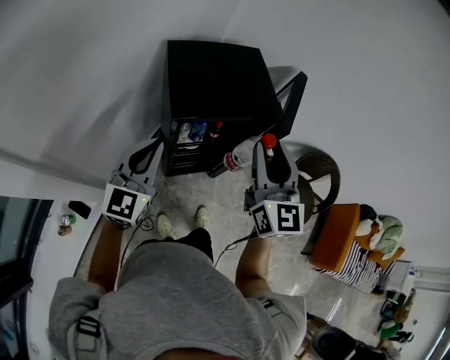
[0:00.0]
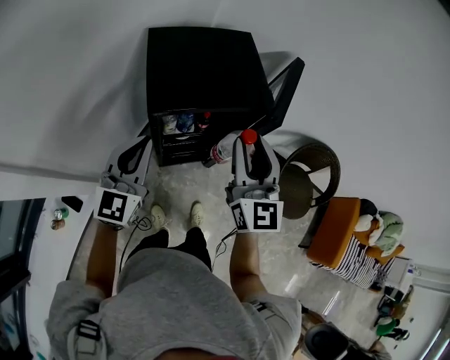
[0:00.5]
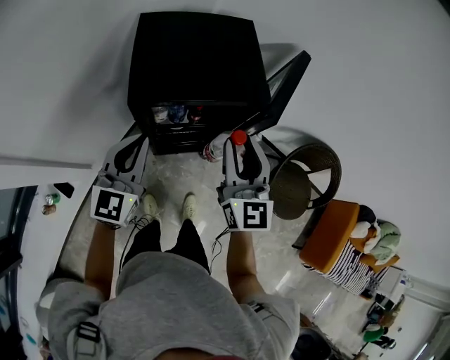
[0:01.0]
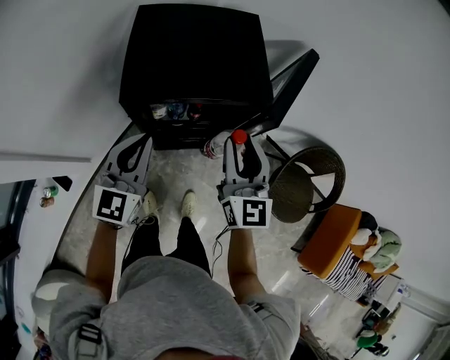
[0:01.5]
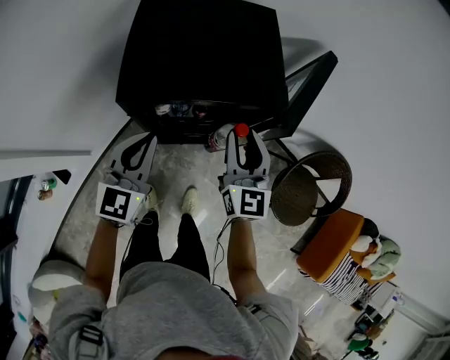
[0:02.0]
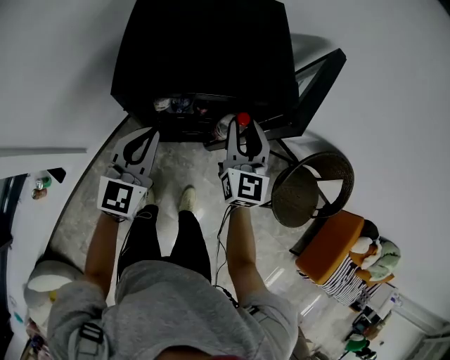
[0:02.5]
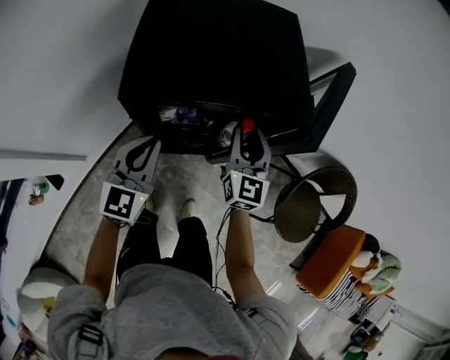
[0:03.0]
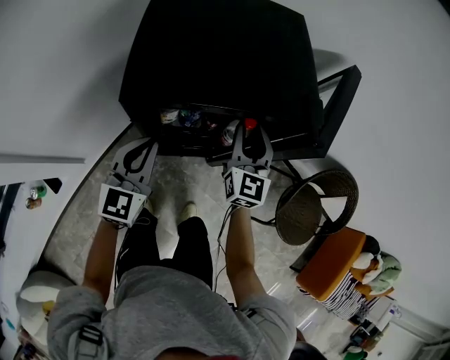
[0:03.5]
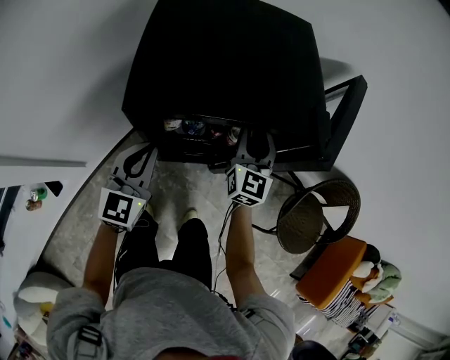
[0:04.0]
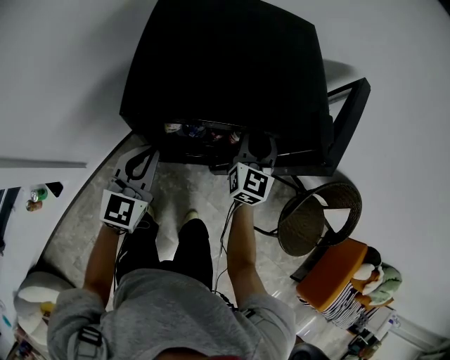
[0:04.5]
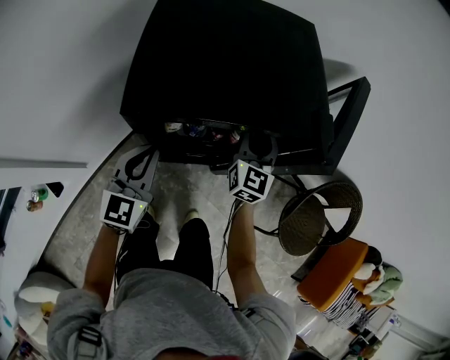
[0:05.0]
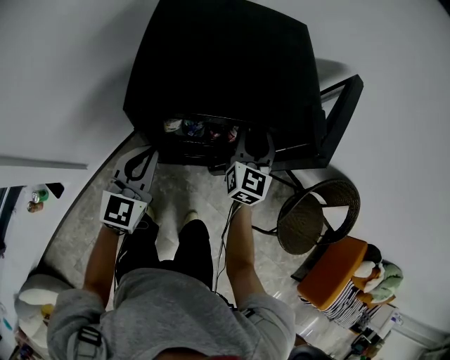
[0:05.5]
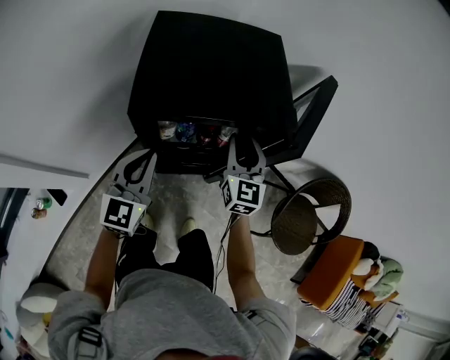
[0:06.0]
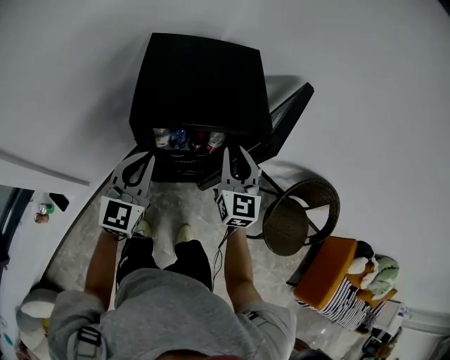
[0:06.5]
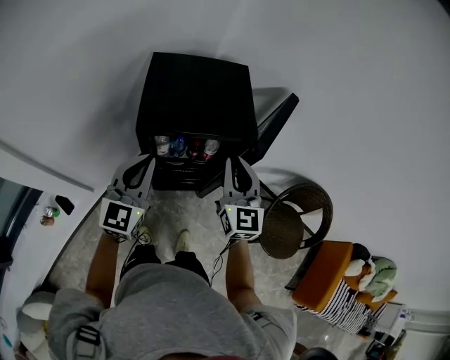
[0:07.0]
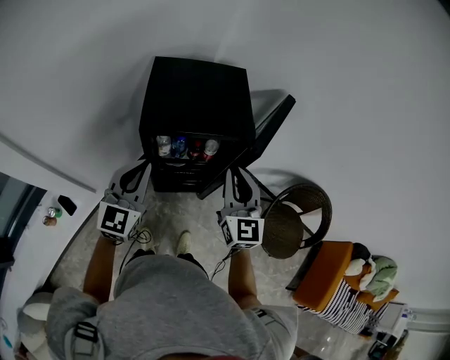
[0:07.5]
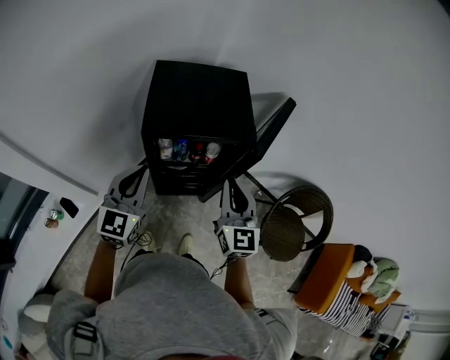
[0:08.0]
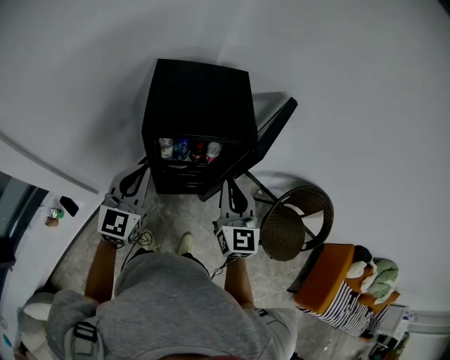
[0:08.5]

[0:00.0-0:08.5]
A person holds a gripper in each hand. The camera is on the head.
0:00.0 to 0:02.0: The right gripper shifts roughly 25 cm downward and forward. The left gripper travels downward, to the right and forward by approximately 15 cm.
0:02.0 to 0:04.0: The left gripper moves downward, roughly 10 cm; the right gripper shifts some 15 cm downward and forward.
0:04.0 to 0:06.5: The right gripper heads upward and backward, covering roughly 15 cm, while the left gripper moves upward, about 15 cm.
0:06.5 to 0:08.5: The right gripper is displaced backward and upward by approximately 15 cm; the left gripper shifts about 10 cm upward and backward.

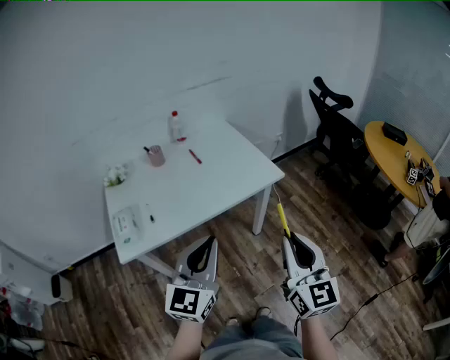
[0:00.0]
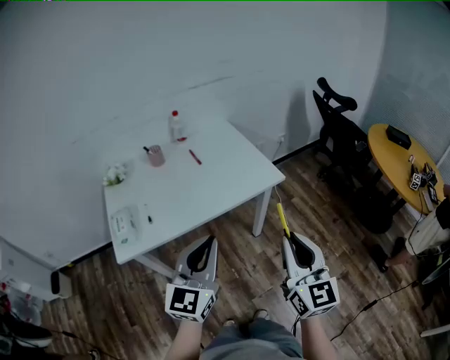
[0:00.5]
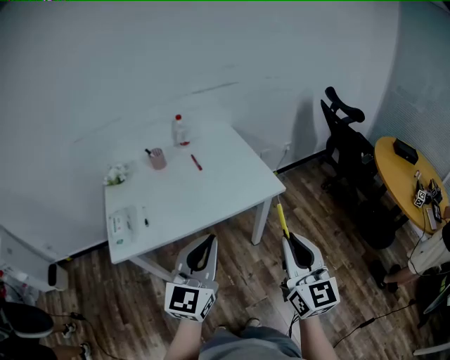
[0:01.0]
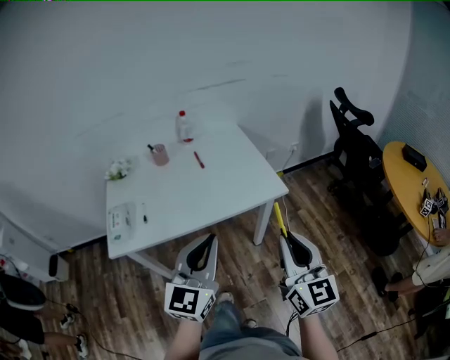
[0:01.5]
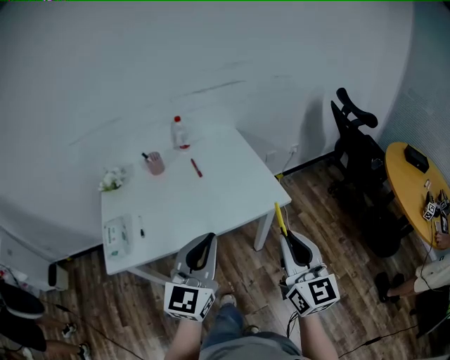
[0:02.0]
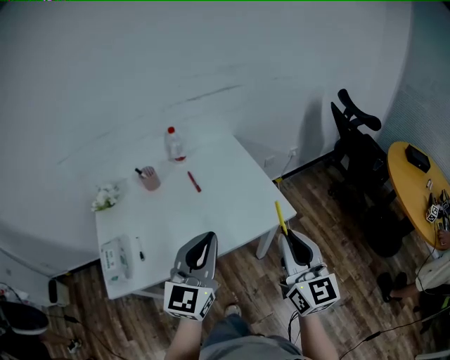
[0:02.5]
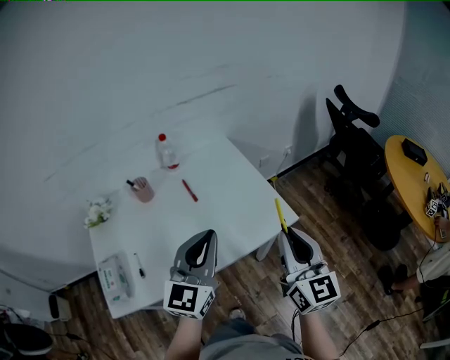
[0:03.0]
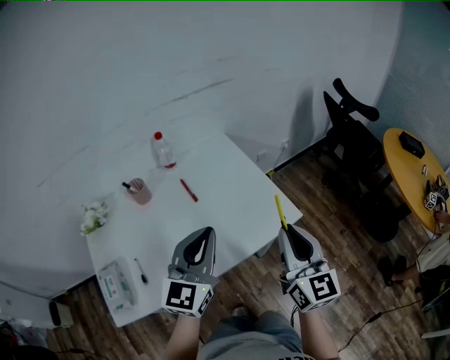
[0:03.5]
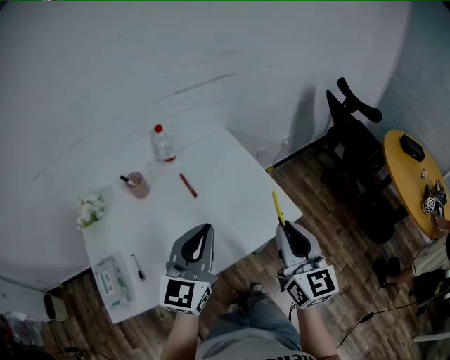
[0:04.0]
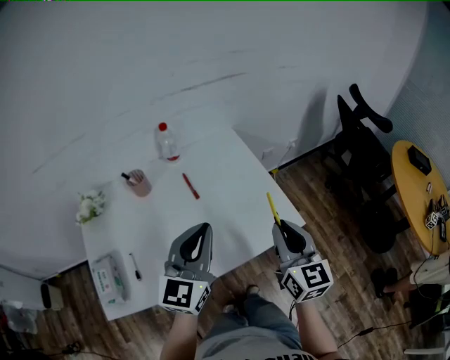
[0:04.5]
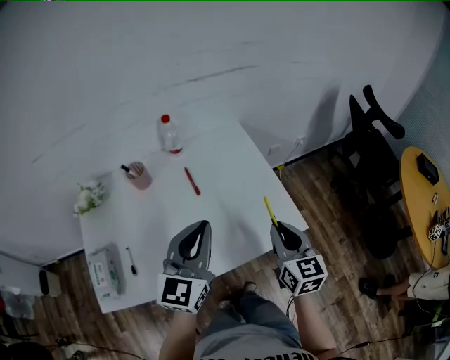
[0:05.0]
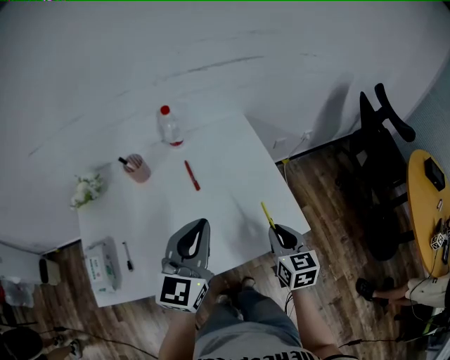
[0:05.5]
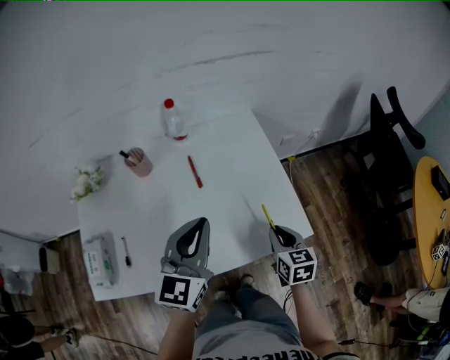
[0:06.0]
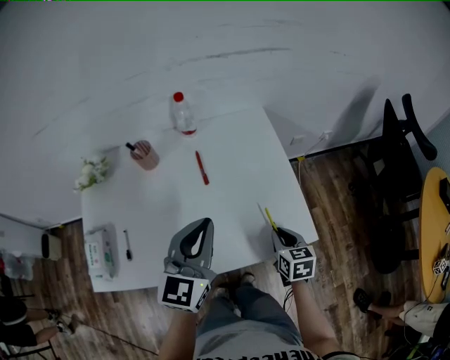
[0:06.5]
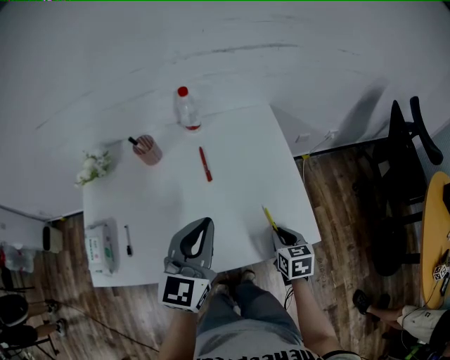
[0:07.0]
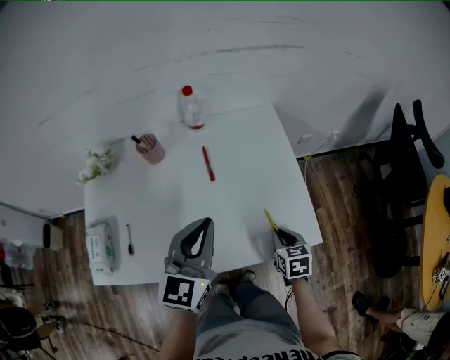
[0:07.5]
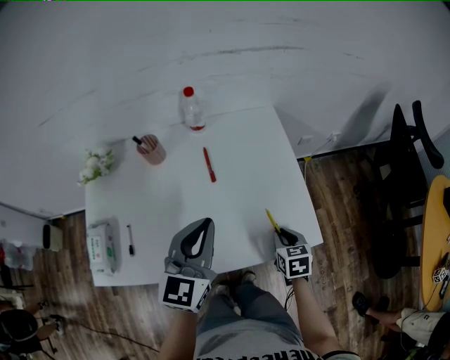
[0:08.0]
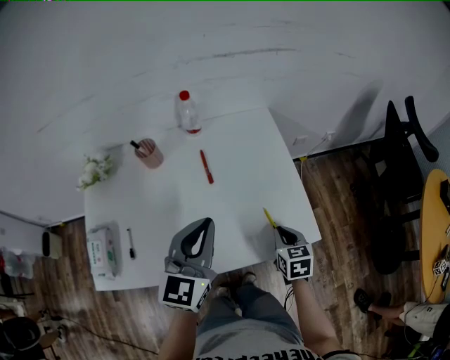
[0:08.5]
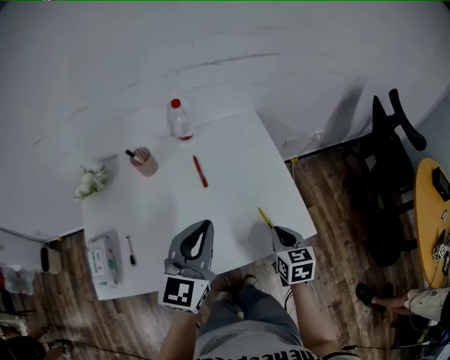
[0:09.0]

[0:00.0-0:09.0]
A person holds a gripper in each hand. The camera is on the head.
0:00.0 to 0:02.0: Both grippers travel together forward, some 15 cm.
0:02.0 to 0:04.5: Both grippers travel together forward, roughly 20 cm.
0:04.5 to 0:07.0: The right gripper goes roughly 25 cm downward, and angles its fingers downward, by approximately 40 degrees. The left gripper goes about 5 cm downward.
0:07.0 to 0:09.0: The right gripper heads upward, covering roughly 5 cm.

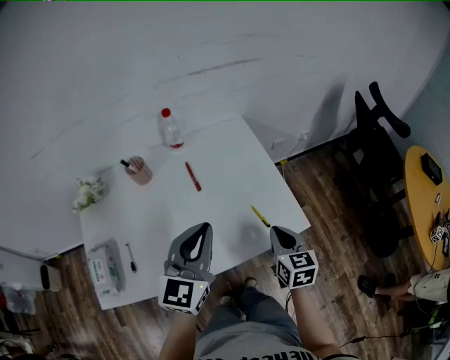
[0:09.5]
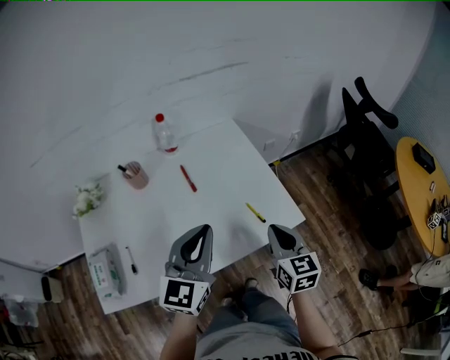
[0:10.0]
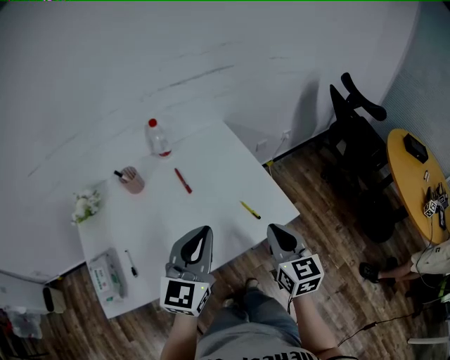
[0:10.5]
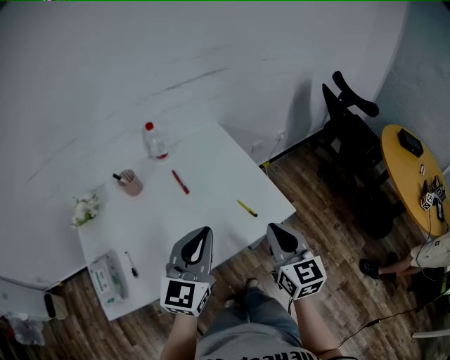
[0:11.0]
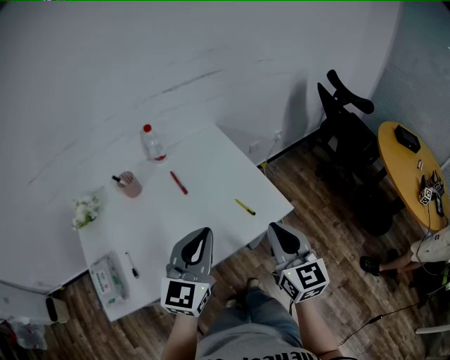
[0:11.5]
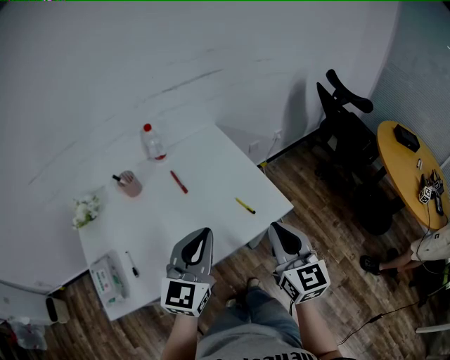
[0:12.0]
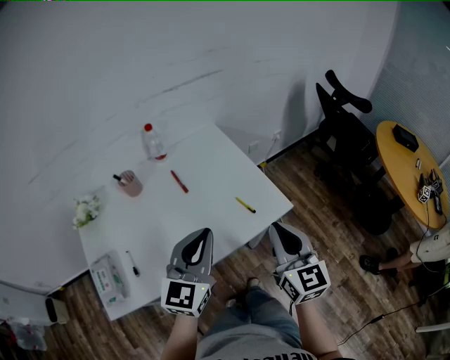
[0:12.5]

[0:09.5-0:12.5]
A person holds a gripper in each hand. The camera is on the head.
0:09.5 to 0:11.0: The right gripper travels upward and backward by approximately 15 cm, while the left gripper shifts by approximately 5 cm.
0:11.0 to 0:12.5: The grippers move only a little.

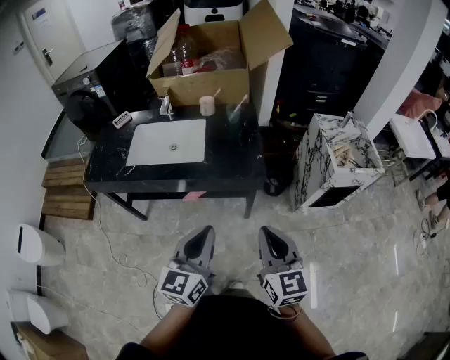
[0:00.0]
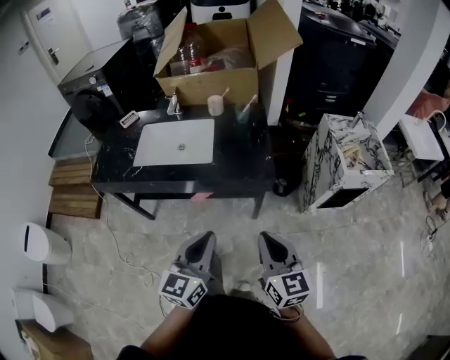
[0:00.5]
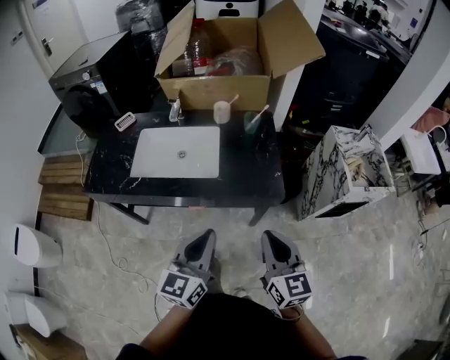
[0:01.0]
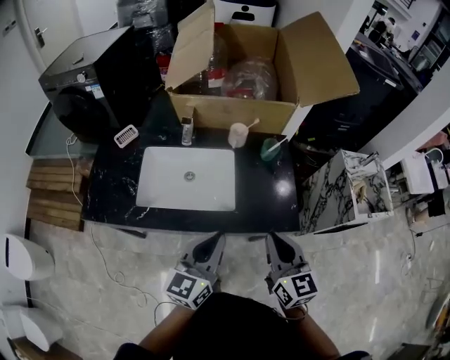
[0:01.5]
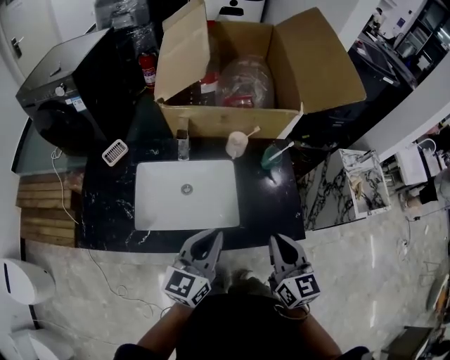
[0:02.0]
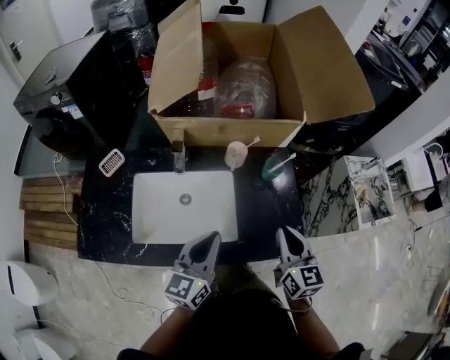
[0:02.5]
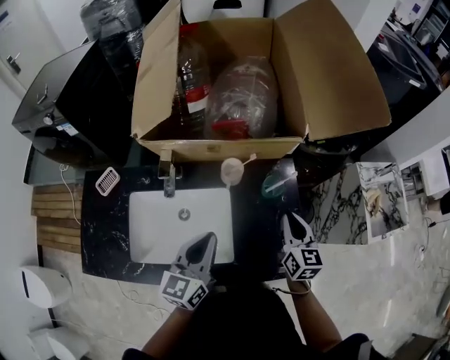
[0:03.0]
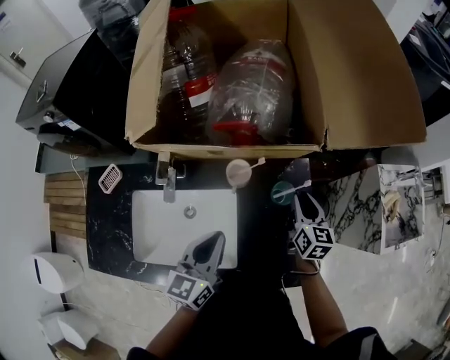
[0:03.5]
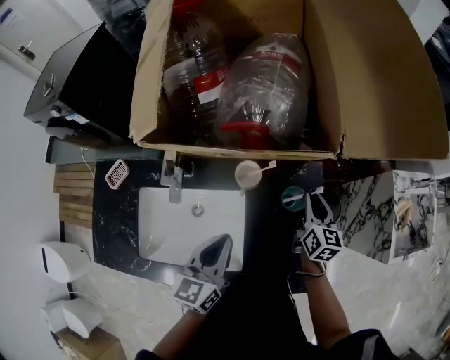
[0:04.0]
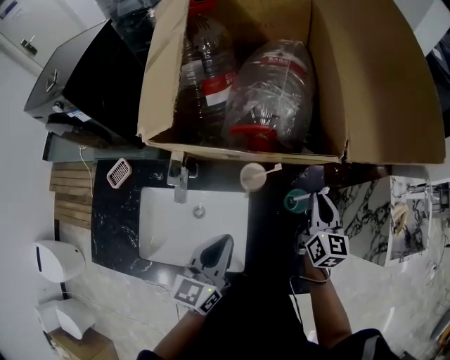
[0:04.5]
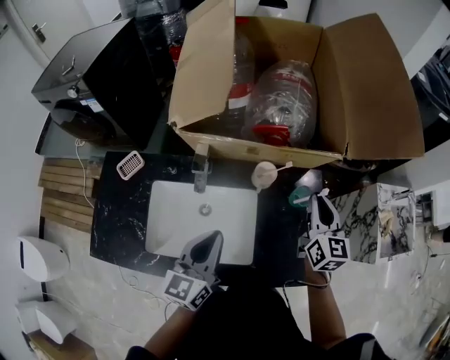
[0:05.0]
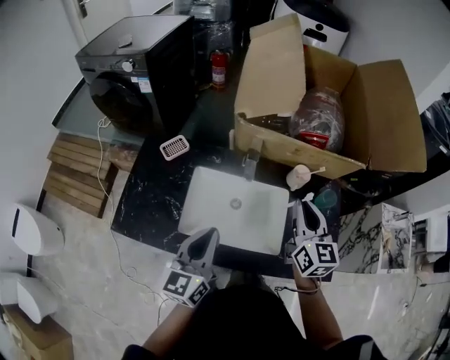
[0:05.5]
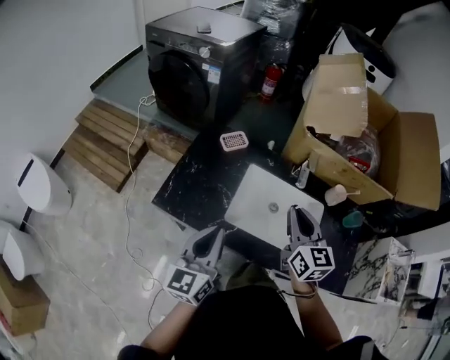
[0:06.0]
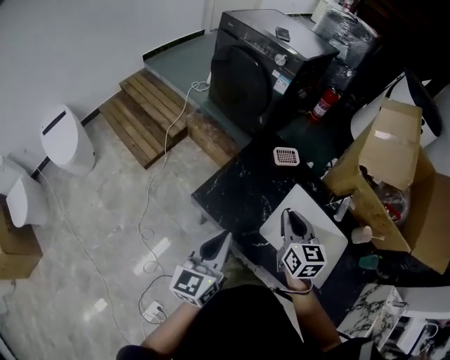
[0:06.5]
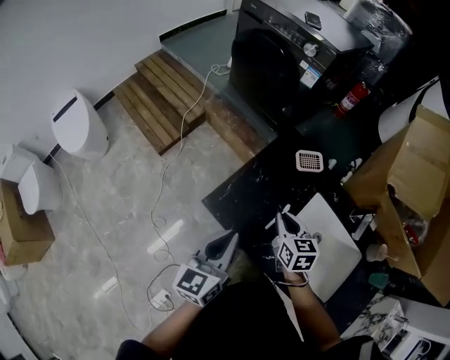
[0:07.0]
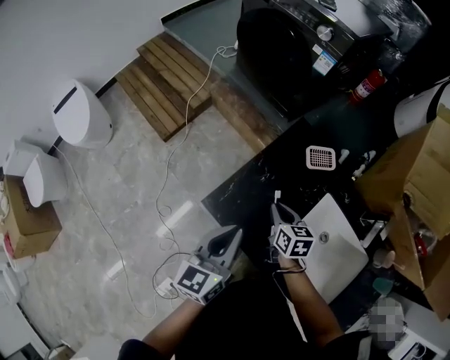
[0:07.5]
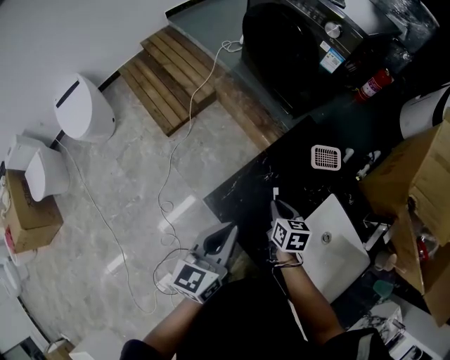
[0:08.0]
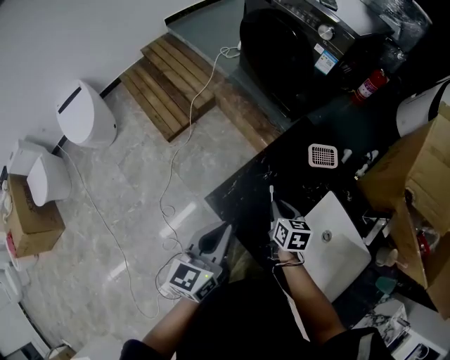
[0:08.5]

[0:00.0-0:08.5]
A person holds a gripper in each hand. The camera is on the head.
0:00.0 to 0:02.0: The two grippers go roughly 40 cm forward and to the left.
0:02.0 to 0:04.0: The left gripper shifts roughly 20 cm forward; the right gripper shifts roughly 40 cm forward and downward, and swivels roughly 20 degrees.
0:04.0 to 0:06.5: Both grippers are carried roughly 60 cm. The left gripper rotates roughly 40 degrees, while the right gripper changes its angle by roughly 50 degrees.
0:06.5 to 0:08.5: The right gripper is displaced downward and forward by about 25 cm, and swivels some 30 degrees, while the left gripper is displaced forward and downward by roughly 10 cm.
